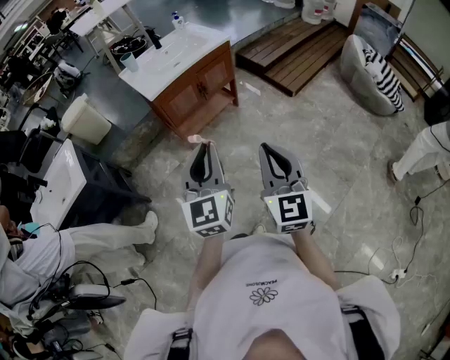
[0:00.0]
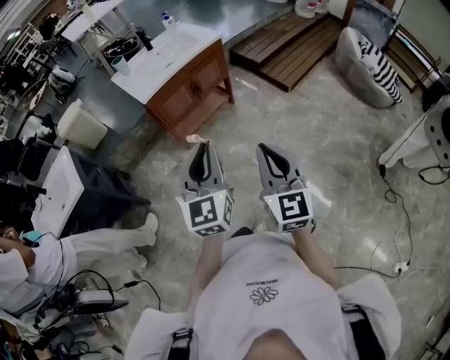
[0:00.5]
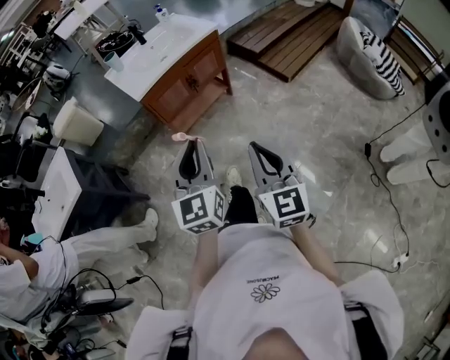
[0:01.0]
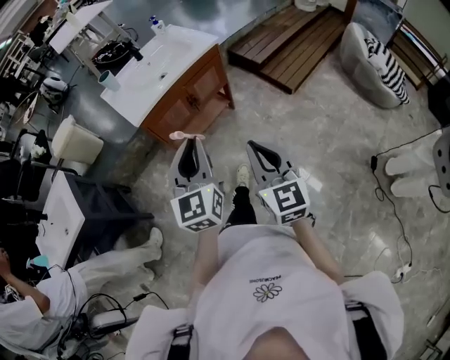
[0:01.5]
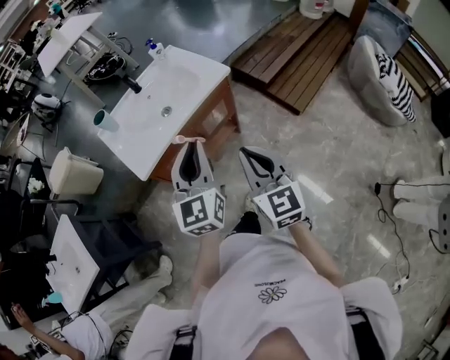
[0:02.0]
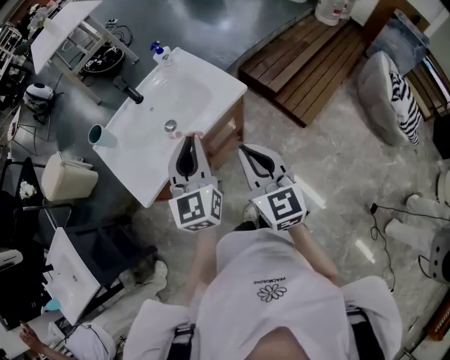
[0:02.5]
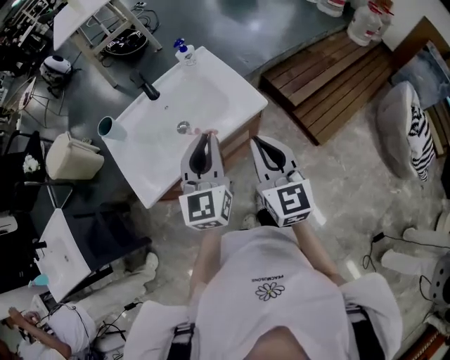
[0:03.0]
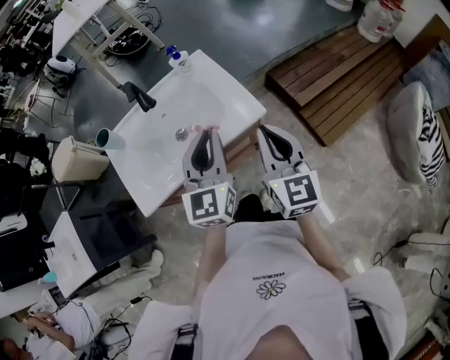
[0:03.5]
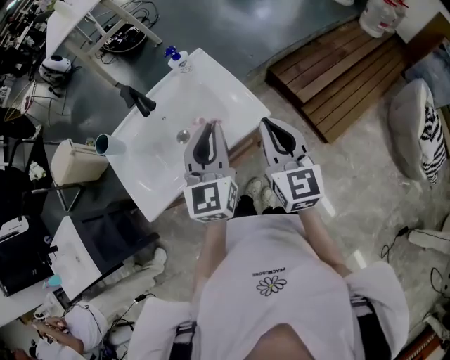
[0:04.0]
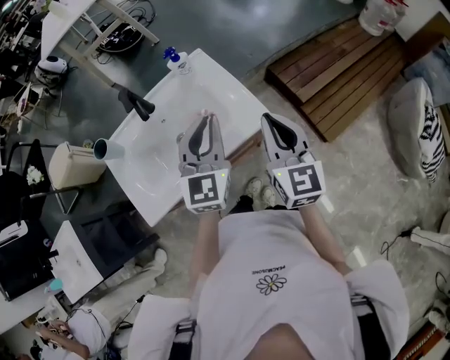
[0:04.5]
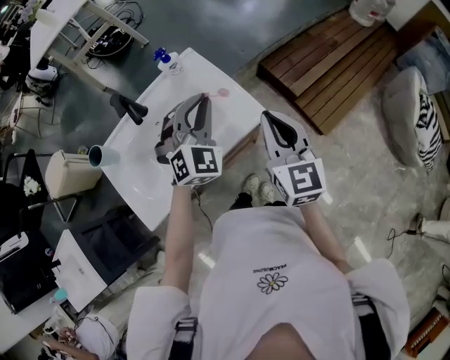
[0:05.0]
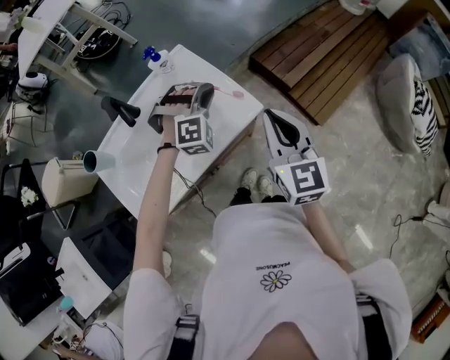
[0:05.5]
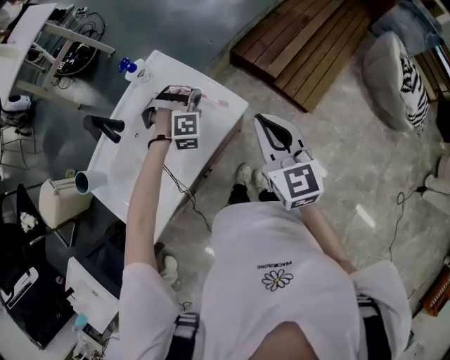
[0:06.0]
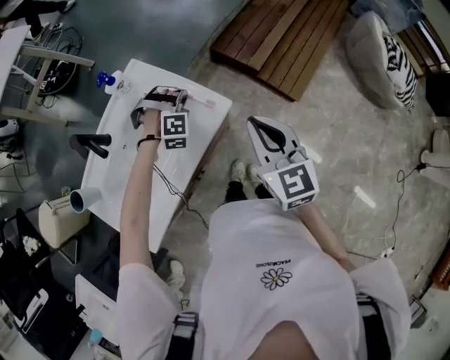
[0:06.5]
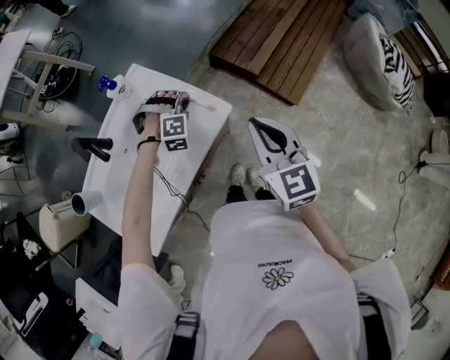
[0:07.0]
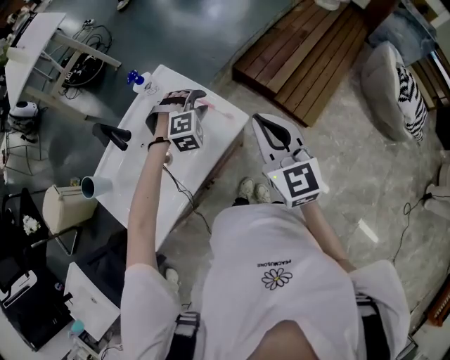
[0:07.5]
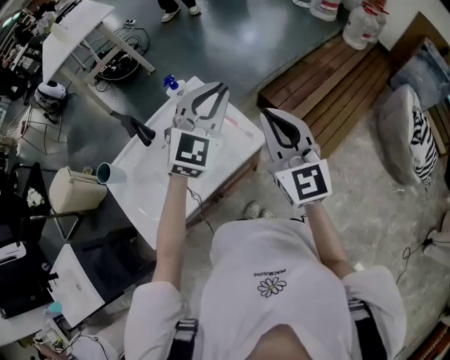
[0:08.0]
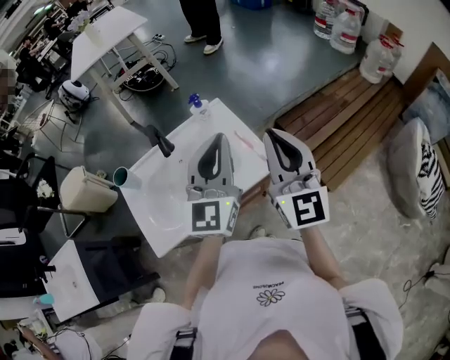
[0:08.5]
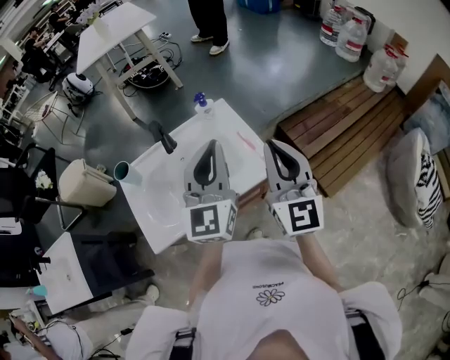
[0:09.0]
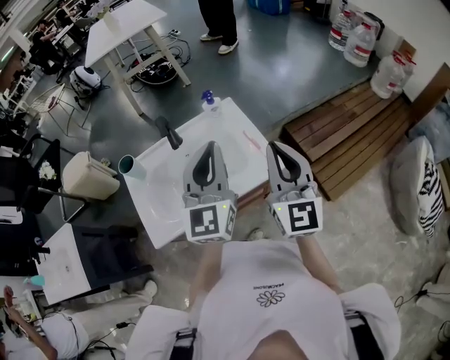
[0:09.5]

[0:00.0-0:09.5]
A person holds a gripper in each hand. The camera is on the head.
0:00.0 to 0:02.0: The pair of grippers is taken forward, about 40 cm.
0:02.0 to 0:04.0: The grippers both shift forward by approximately 35 cm.
0:04.0 to 0:05.5: The left gripper shifts some 20 cm downward and forward, and rotates around the line of its fingers by about 80 degrees, clockwise from behind.
0:05.5 to 0:07.5: The left gripper opens.
0:07.5 to 0:09.5: The right gripper travels upward and to the left by some 15 cm, and rotates some 20 degrees. Meanwhile the left gripper moves upward and backward, approximately 30 cm, points its fingers approximately 60 degrees further upward, and closes up.

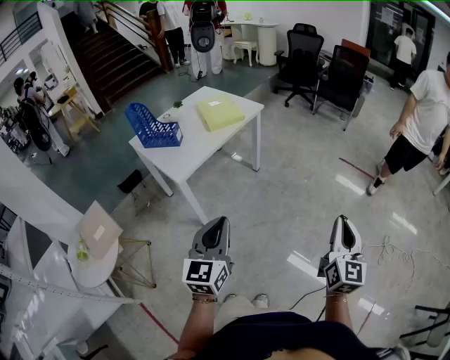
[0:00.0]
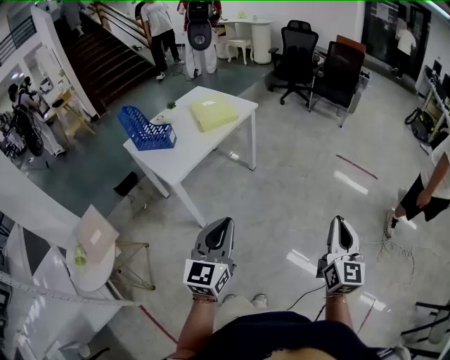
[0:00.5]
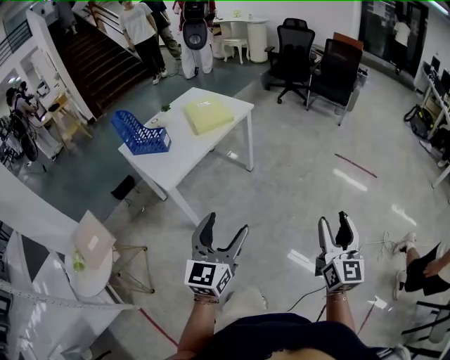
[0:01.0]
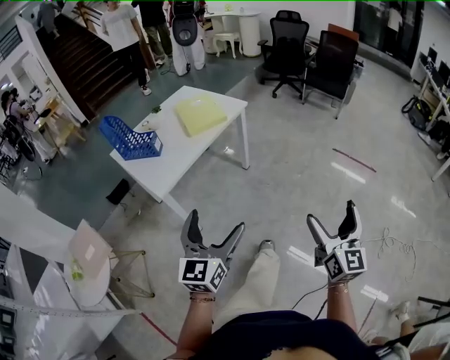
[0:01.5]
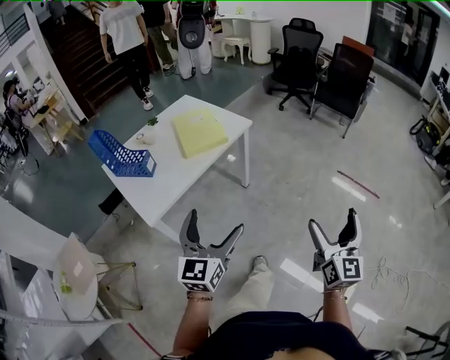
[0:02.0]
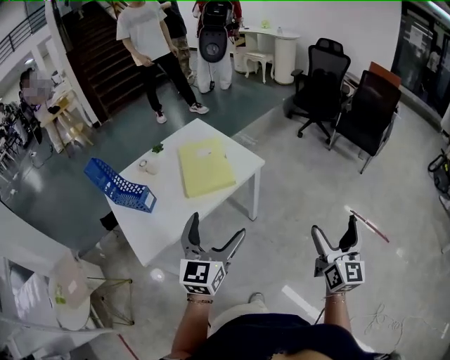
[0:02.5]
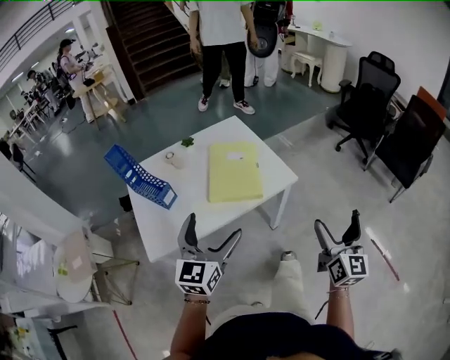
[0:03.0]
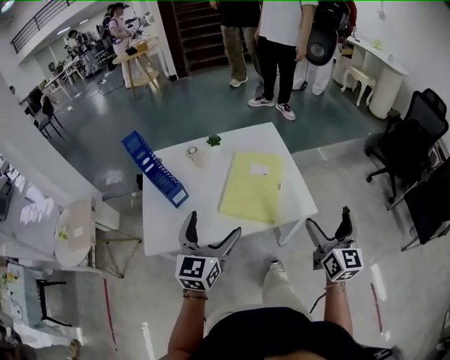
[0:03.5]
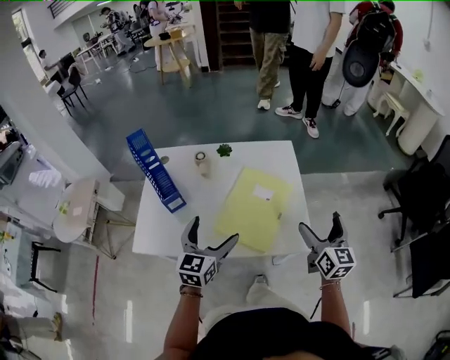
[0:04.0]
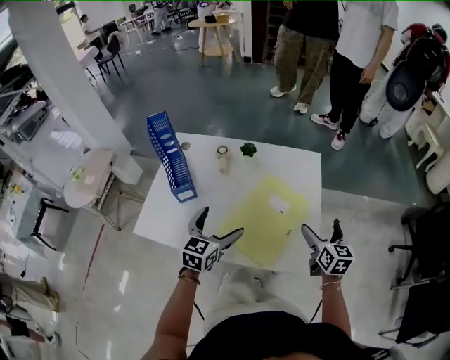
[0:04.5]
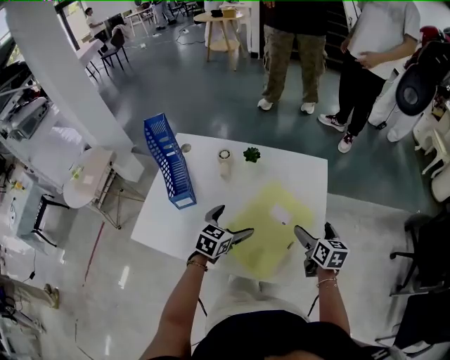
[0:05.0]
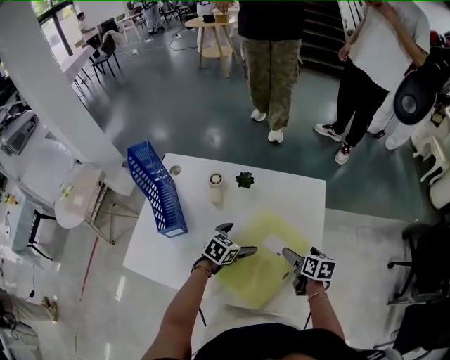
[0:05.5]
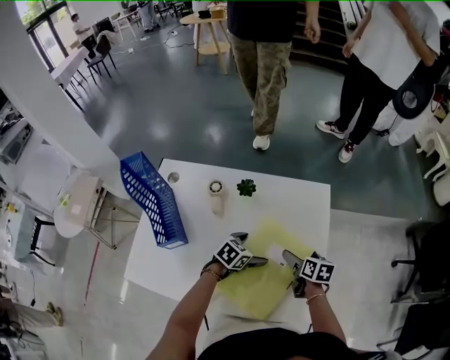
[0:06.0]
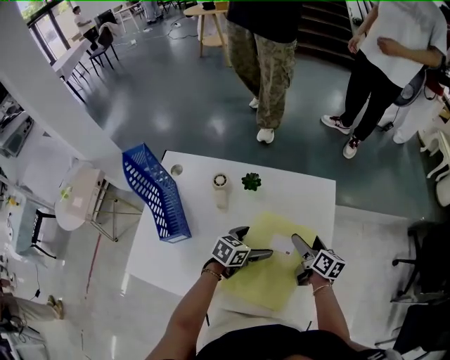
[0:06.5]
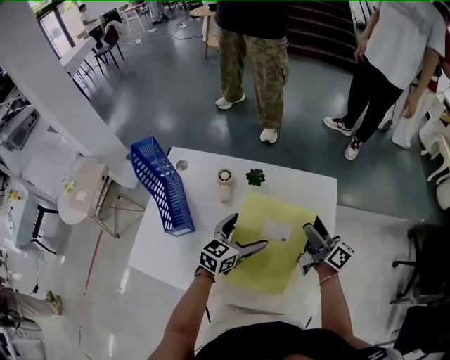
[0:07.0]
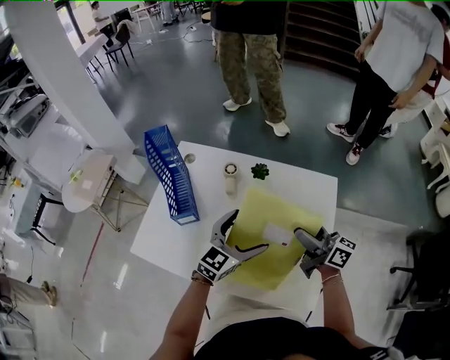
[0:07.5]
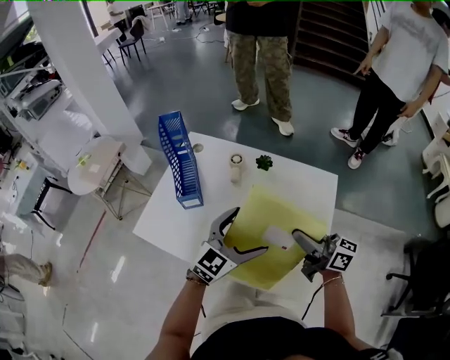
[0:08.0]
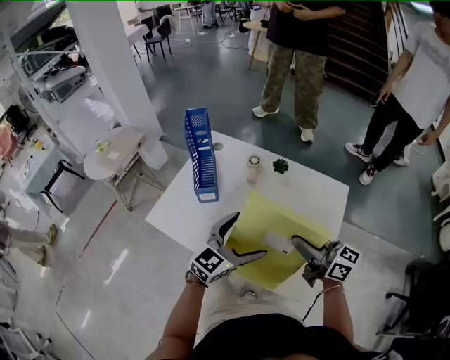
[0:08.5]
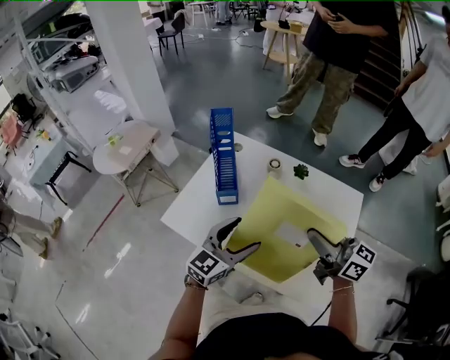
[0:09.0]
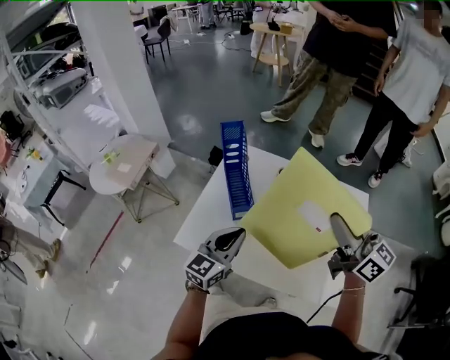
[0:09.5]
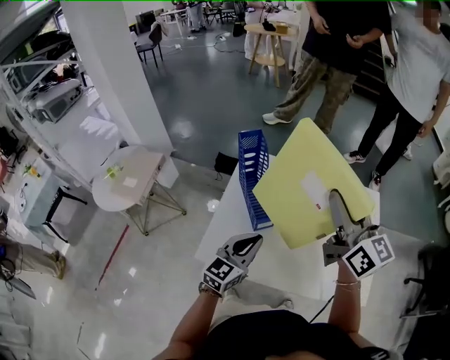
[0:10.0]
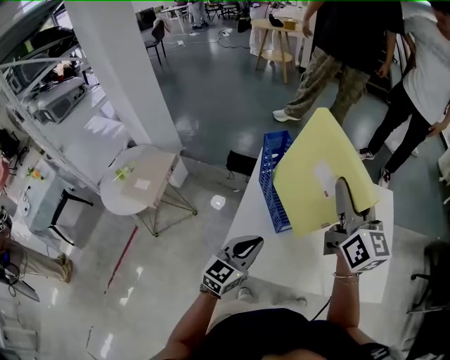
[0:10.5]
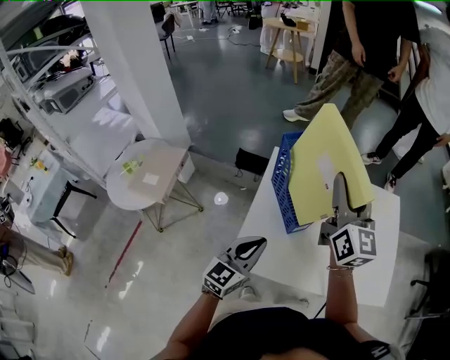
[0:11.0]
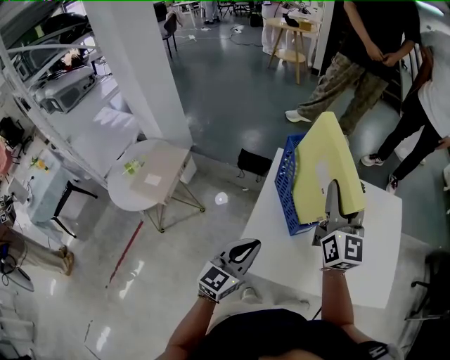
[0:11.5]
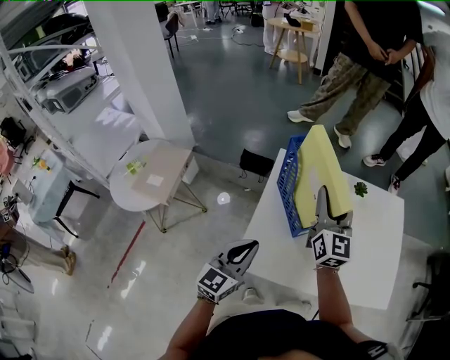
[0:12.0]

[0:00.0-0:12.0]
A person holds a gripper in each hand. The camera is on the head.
0:00.0 to 0:02.0: The grippers both shift forward by about 30 cm. The right gripper opens; the left gripper opens up.
0:02.0 to 0:04.0: Both grippers are carried about 60 cm. The left gripper swivels approximately 50 degrees. The right gripper rotates approximately 60 degrees.
0:04.0 to 0:06.0: The left gripper travels forward and downward by roughly 35 cm, and angles its fingers downward, by approximately 30 degrees, while the right gripper moves downward and forward, some 35 cm, and points its fingers some 40 degrees further downward.
0:06.0 to 0:08.0: Both grippers travel together upward, some 25 cm. The right gripper angles its fingers upward, by roughly 50 degrees, and closes its fingers; the left gripper tilts its fingers roughly 40 degrees upward.
0:08.0 to 0:10.0: The left gripper heads to the left, covering approximately 30 cm, and closes. Meanwhile the right gripper is displaced to the left and upward by about 30 cm, and changes its angle by some 40 degrees.
0:10.0 to 0:12.0: The right gripper heads to the left and downward, covering some 20 cm, and rotates approximately 20 degrees. The left gripper goes some 15 cm to the left.

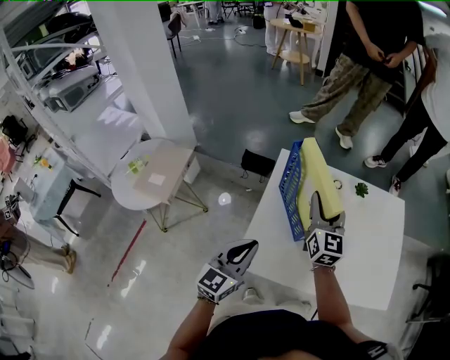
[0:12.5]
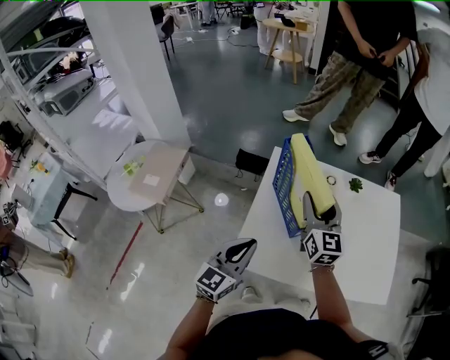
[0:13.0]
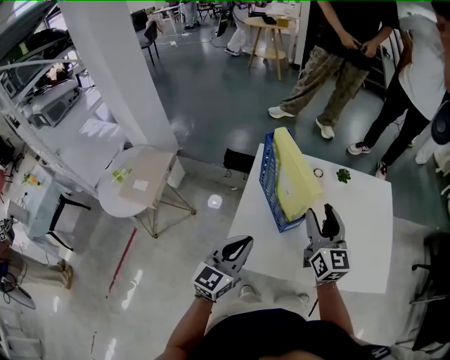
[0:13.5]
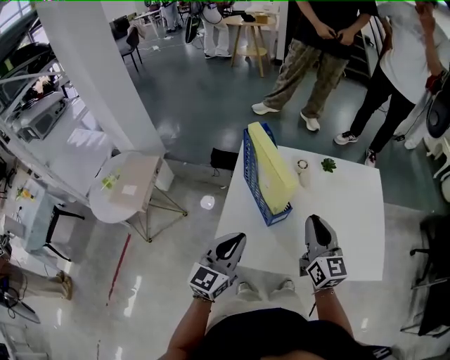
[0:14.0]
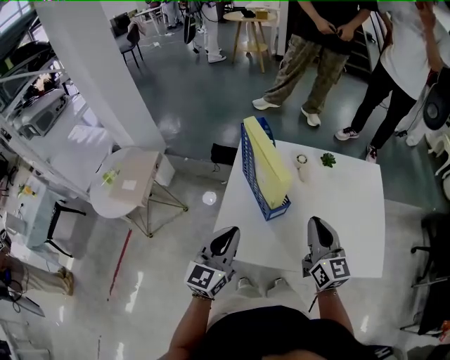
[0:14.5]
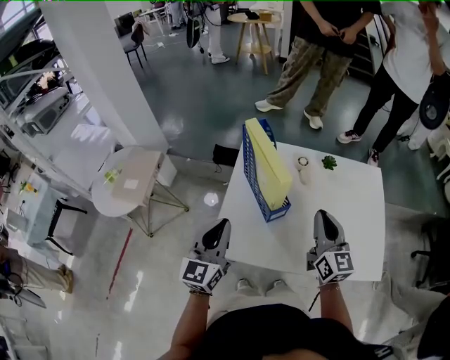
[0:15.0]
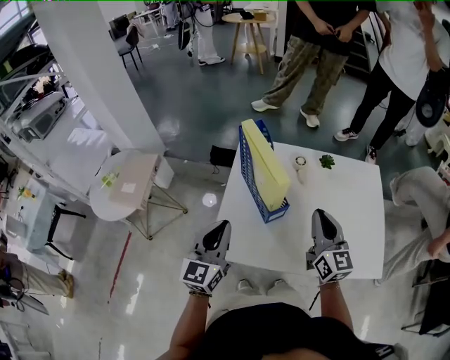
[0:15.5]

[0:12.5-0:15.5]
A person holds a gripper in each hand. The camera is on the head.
0:12.5 to 0:14.0: The right gripper heads to the right and backward, covering some 15 cm; the left gripper moves to the right, about 5 cm.
0:14.0 to 0:15.5: The grippers make only small movements.

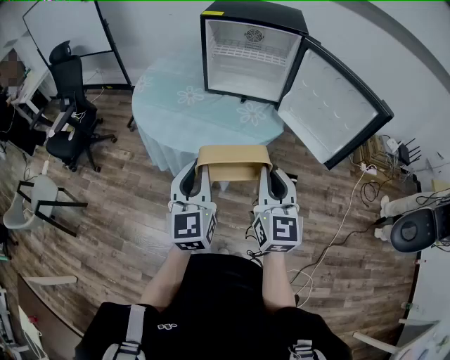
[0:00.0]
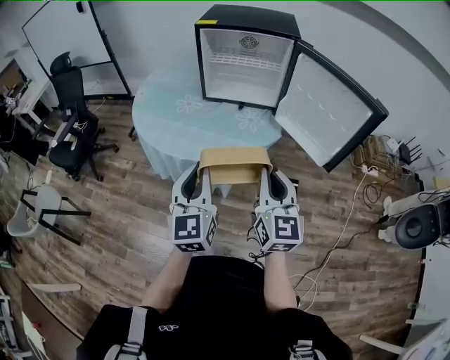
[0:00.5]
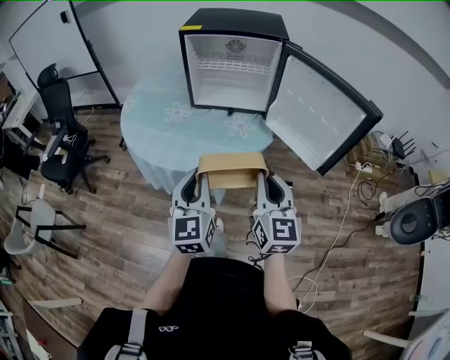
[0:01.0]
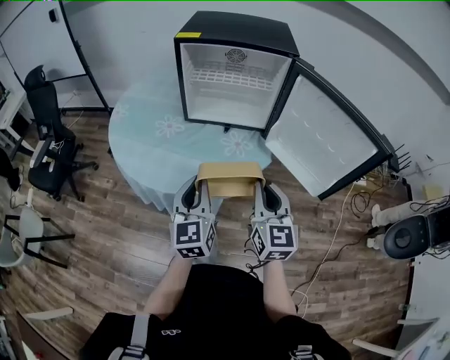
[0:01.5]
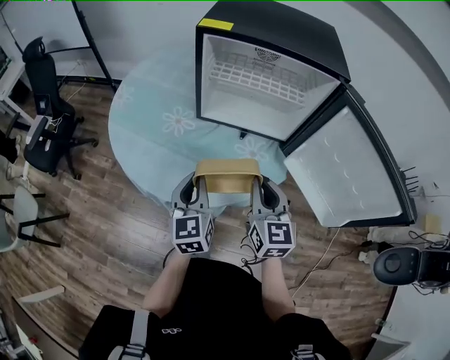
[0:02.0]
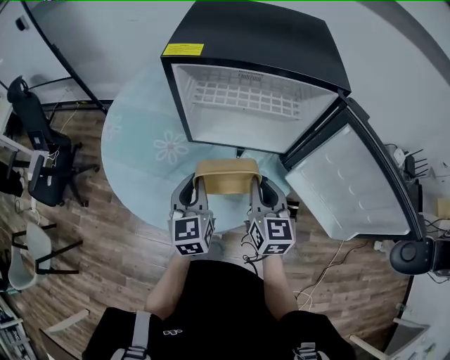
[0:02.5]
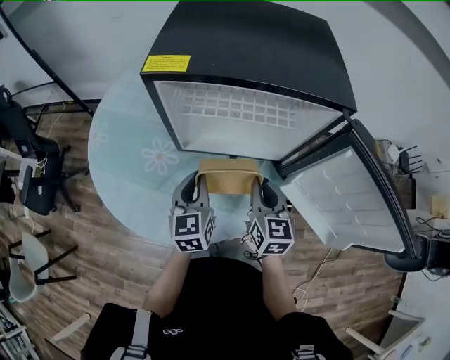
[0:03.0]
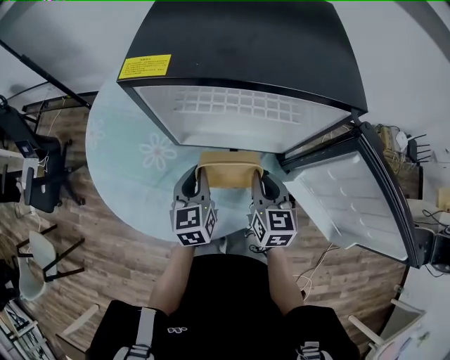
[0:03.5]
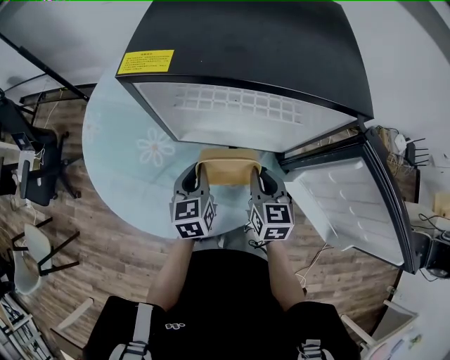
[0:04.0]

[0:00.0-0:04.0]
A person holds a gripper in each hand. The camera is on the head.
0:00.0 to 0:02.0: Both grippers travel together forward, roughly 25 cm.
0:02.0 to 0:04.0: The right gripper travels forward and downward by some 20 cm. The left gripper moves forward, some 20 cm.
